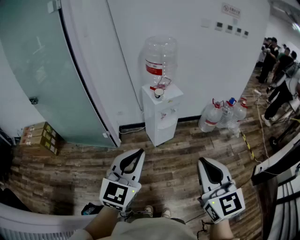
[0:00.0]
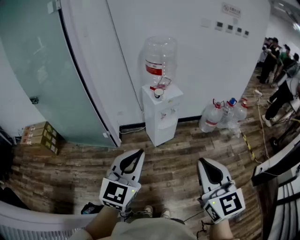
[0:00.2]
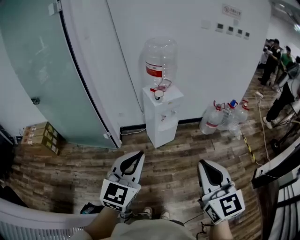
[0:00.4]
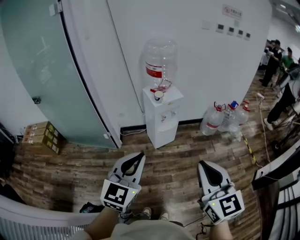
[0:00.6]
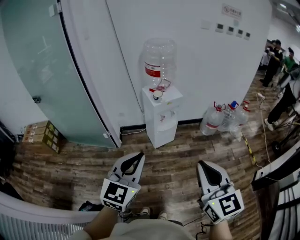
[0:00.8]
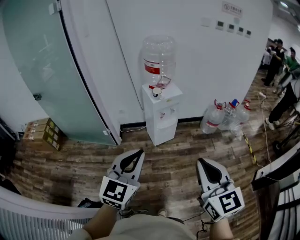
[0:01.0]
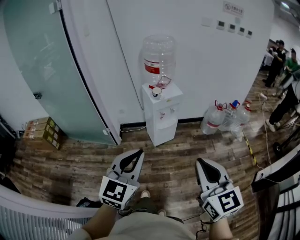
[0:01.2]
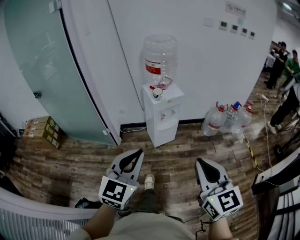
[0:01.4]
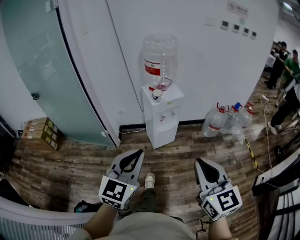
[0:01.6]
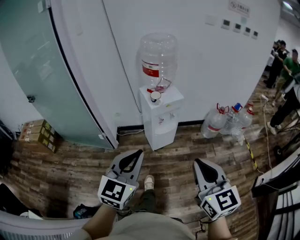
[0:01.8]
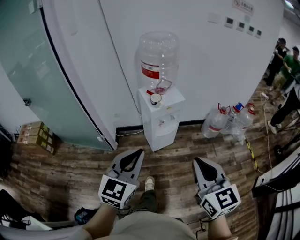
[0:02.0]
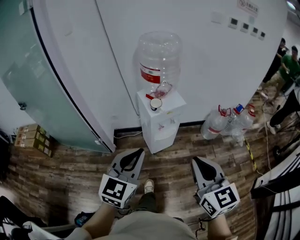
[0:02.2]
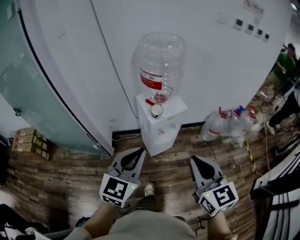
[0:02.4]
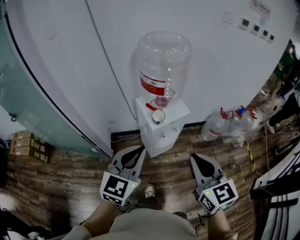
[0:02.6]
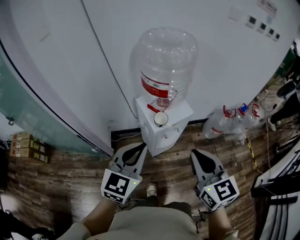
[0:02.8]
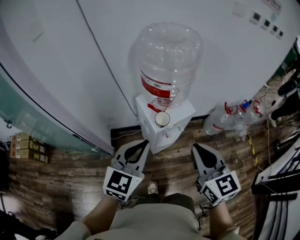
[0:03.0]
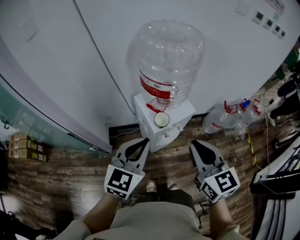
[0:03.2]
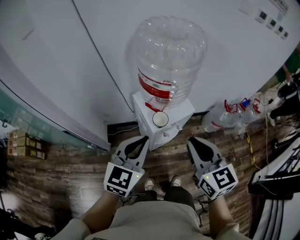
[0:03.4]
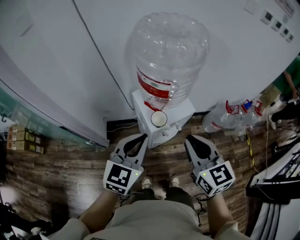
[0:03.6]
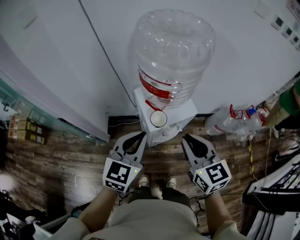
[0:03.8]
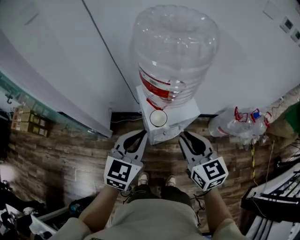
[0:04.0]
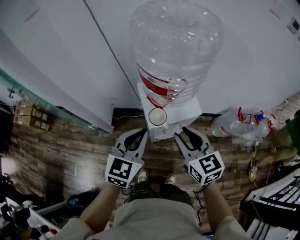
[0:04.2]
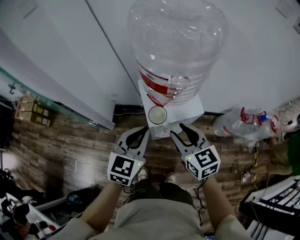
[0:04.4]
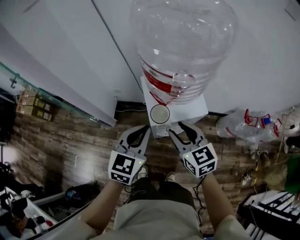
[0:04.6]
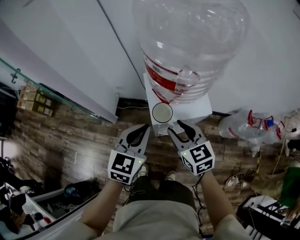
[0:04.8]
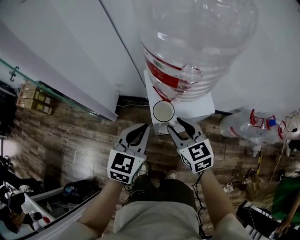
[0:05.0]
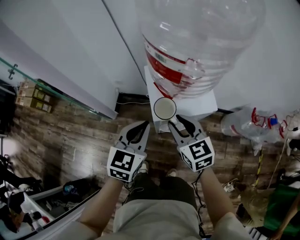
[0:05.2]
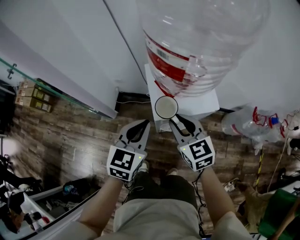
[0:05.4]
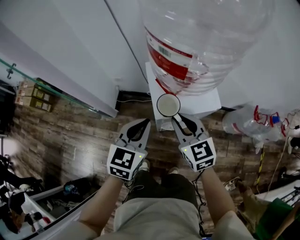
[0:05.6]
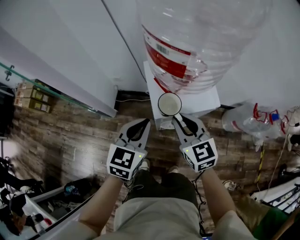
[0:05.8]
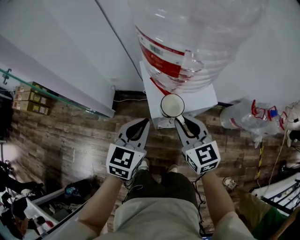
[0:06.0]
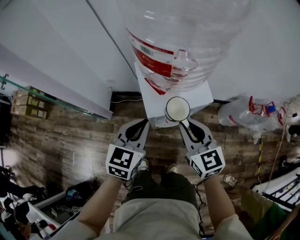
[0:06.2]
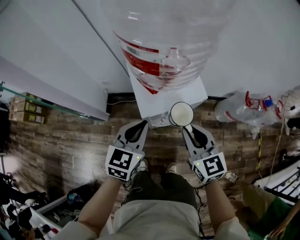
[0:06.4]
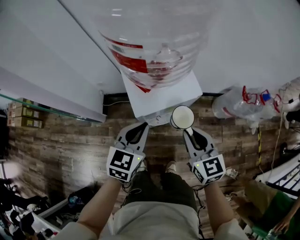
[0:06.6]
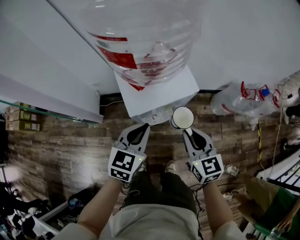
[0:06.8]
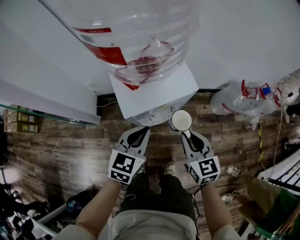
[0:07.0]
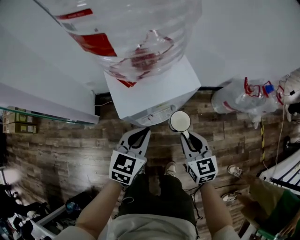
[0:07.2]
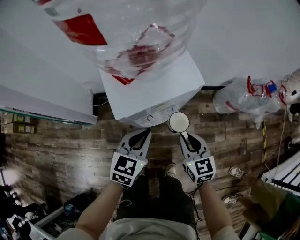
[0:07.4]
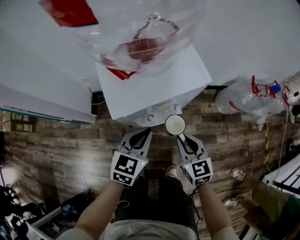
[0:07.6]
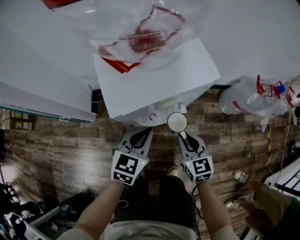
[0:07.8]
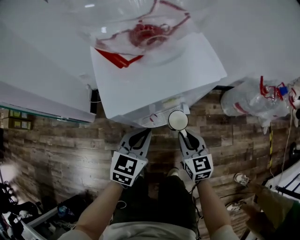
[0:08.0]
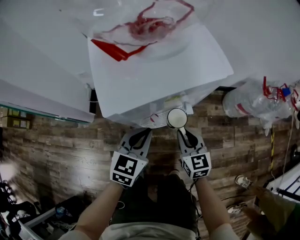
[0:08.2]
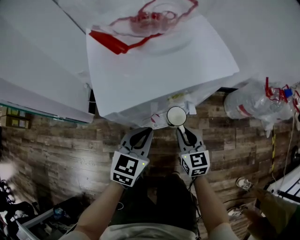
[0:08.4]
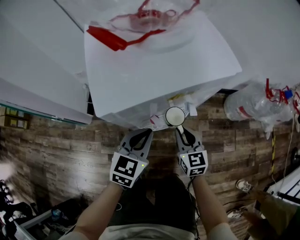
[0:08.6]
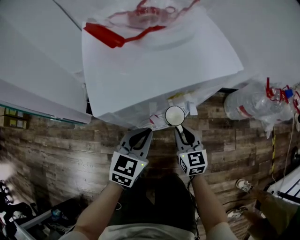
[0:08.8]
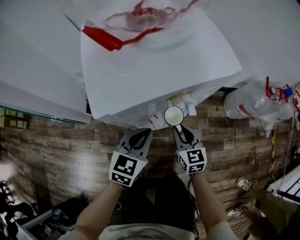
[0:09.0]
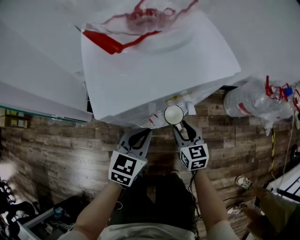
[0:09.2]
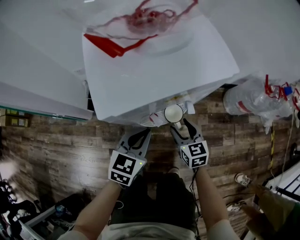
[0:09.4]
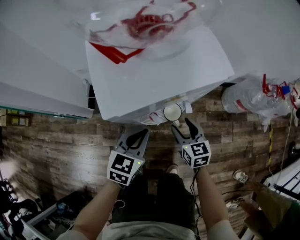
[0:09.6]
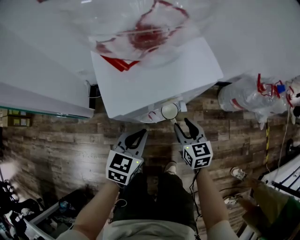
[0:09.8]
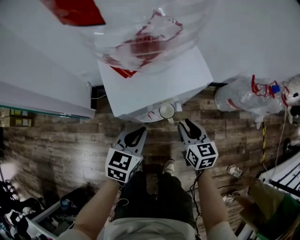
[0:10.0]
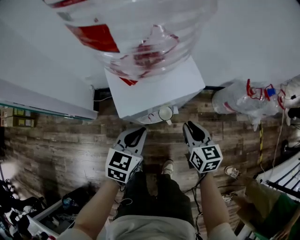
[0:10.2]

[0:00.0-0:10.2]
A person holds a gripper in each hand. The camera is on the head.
0:00.0 to 0:01.4: Both grippers travel together to the right, some 5 cm.
0:01.4 to 0:03.0: Both grippers are carried forward, some 40 cm.
0:03.0 to 0:04.4: The right gripper goes some 20 cm downward and forward, changes its angle by roughly 20 degrees, and opens. The left gripper goes approximately 15 cm downward, forward and to the right.
0:04.4 to 0:05.8: Both grippers travel together downward, some 10 cm. The right gripper closes its fingers.
0:05.8 to 0:07.2: The left gripper goes approximately 15 cm downward and to the right. The right gripper shifts some 20 cm downward, to the right and backward, and changes its angle by about 20 degrees.
0:07.2 to 0:08.8: The two grippers go about 20 cm downward.
0:08.8 to 0:10.2: The grippers both shift upward by about 20 cm. The right gripper opens, then closes again.

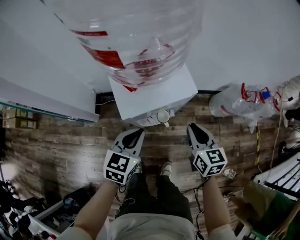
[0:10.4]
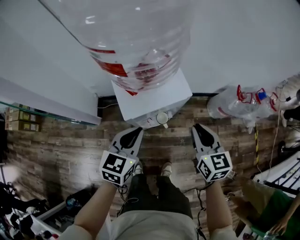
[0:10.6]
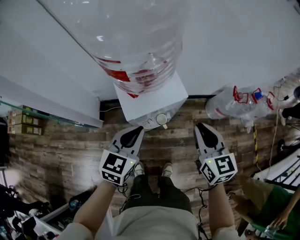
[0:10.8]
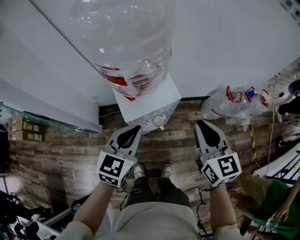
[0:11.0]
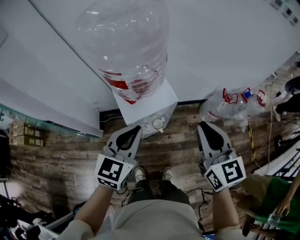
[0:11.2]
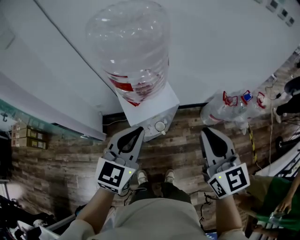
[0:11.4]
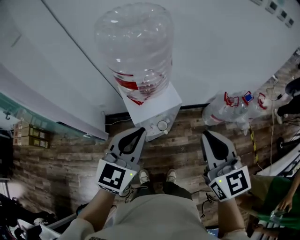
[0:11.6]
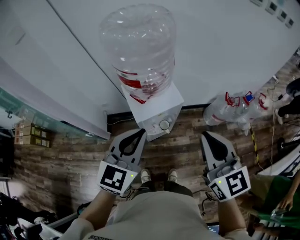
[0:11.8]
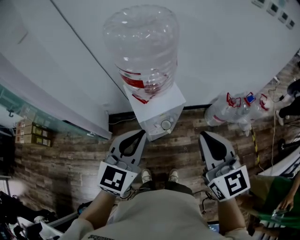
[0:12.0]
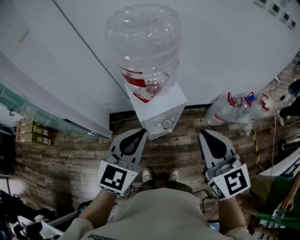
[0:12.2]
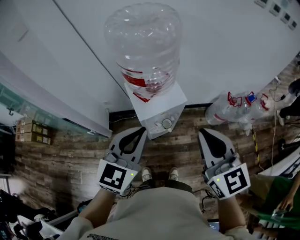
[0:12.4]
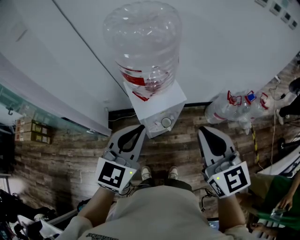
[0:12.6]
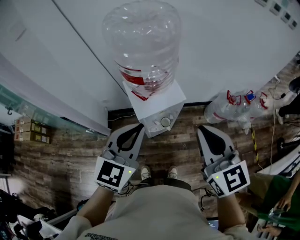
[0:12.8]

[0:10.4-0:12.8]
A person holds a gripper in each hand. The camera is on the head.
0:10.4 to 0:11.6: Both grippers move upward, approximately 35 cm. The right gripper turns by roughly 20 degrees. The left gripper turns by some 20 degrees.
0:11.6 to 0:12.8: There are only small adjustments of the grippers.

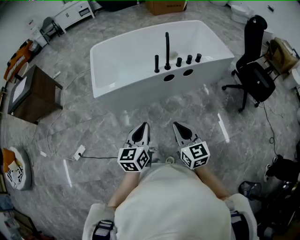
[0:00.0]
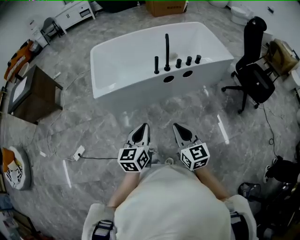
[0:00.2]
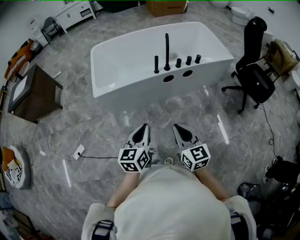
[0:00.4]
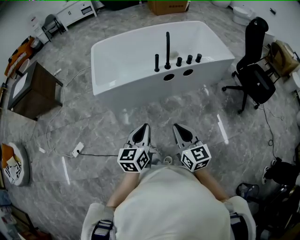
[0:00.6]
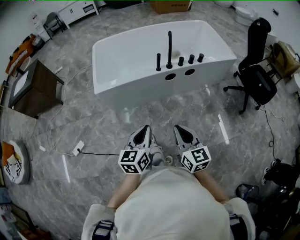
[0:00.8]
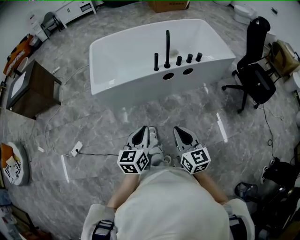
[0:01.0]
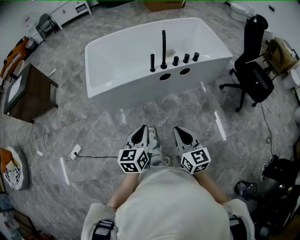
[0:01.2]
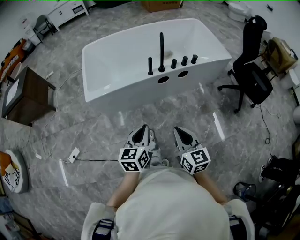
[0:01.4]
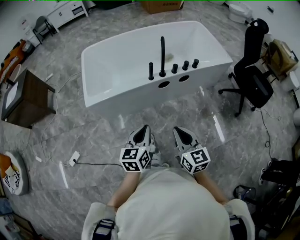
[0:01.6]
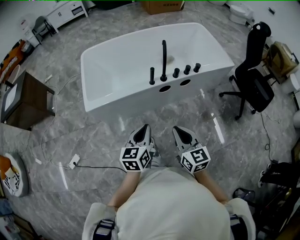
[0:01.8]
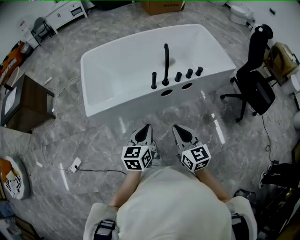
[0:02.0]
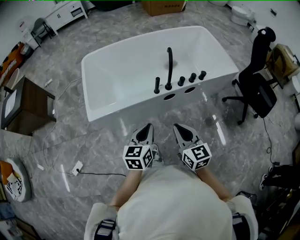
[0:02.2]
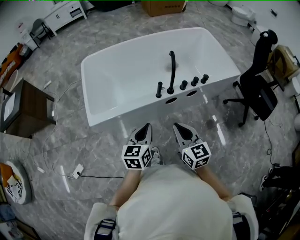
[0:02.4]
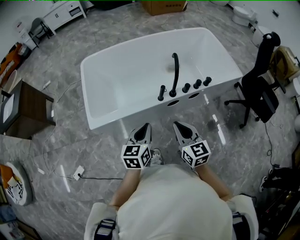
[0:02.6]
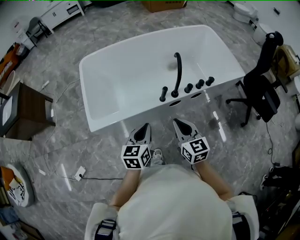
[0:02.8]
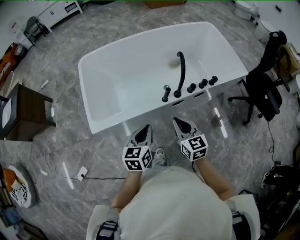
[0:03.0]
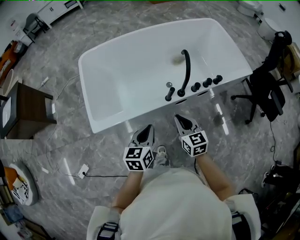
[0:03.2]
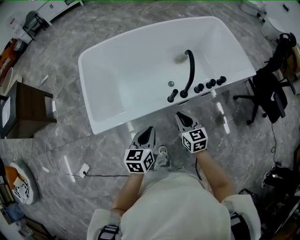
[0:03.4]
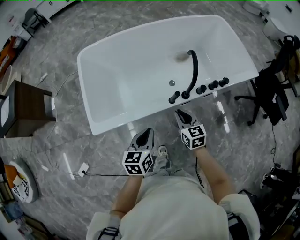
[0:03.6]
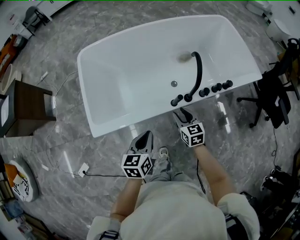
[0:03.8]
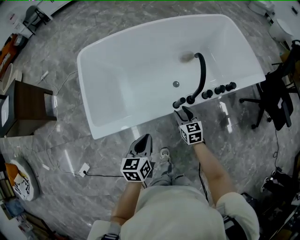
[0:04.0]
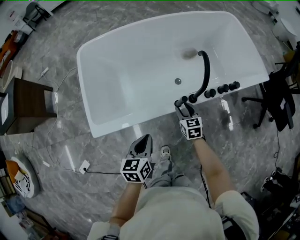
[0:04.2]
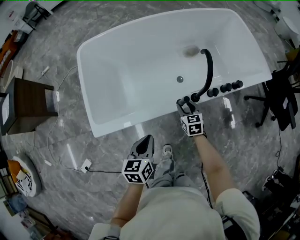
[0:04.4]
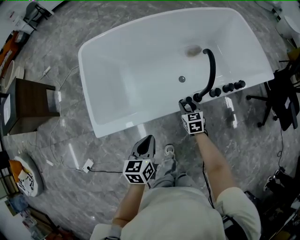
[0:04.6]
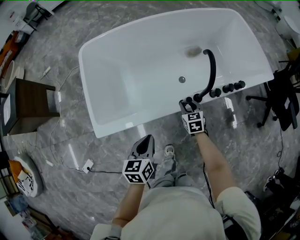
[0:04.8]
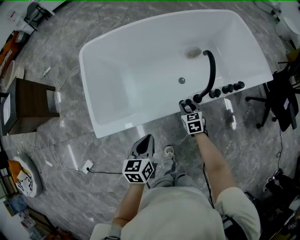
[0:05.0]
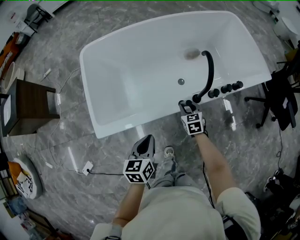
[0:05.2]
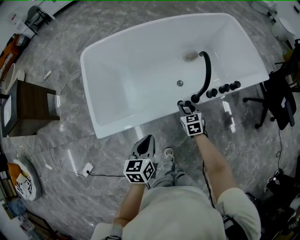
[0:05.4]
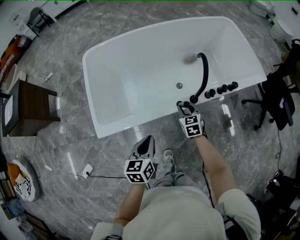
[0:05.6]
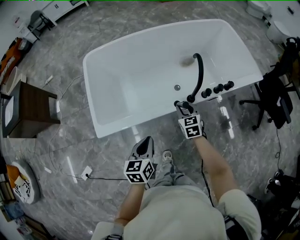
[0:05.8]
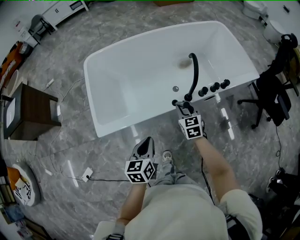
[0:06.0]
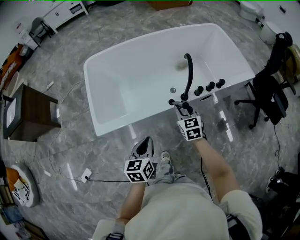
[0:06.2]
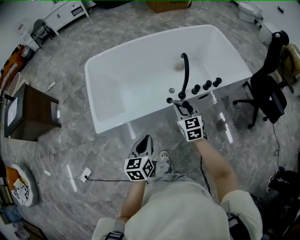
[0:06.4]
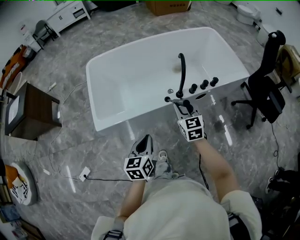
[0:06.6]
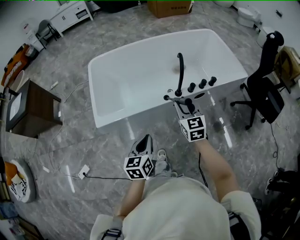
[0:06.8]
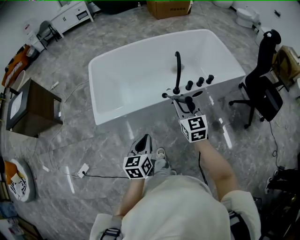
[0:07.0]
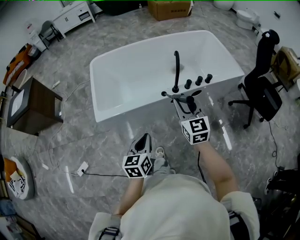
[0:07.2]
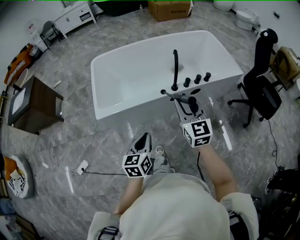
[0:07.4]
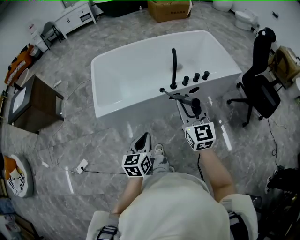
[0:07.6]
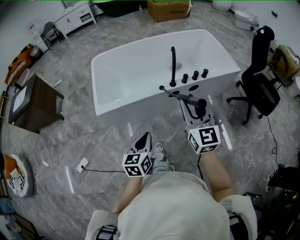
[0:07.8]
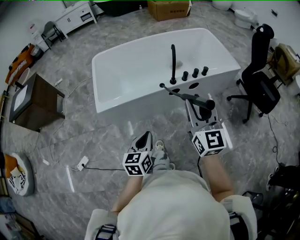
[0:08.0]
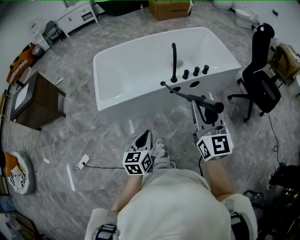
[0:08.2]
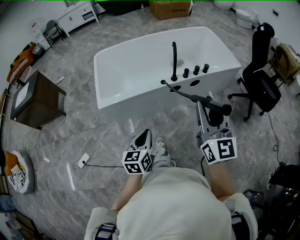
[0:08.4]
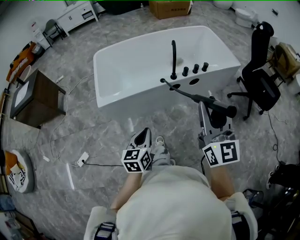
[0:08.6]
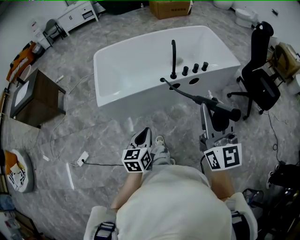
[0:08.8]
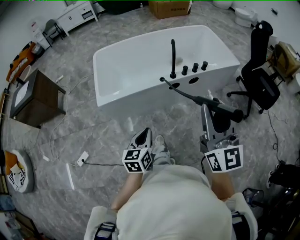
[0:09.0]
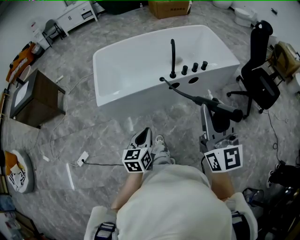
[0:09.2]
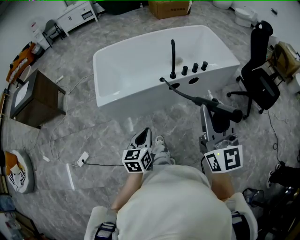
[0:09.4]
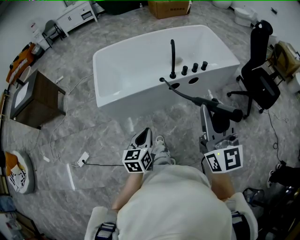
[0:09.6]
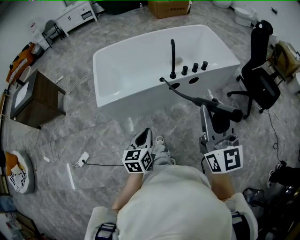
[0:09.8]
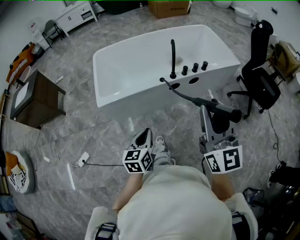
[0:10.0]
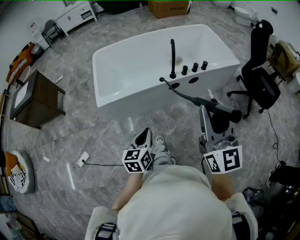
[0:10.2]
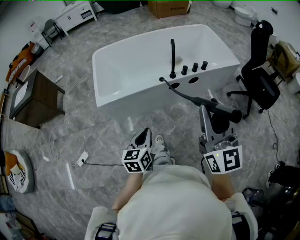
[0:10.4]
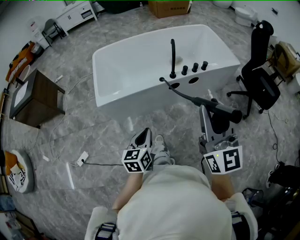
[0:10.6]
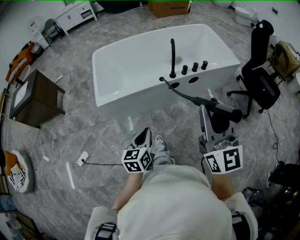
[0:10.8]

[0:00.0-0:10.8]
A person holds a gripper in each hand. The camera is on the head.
0:00.0 to 0:01.6: The grippers both shift forward by about 10 cm.
0:01.6 to 0:03.0: The grippers both shift forward by some 25 cm.
0:03.0 to 0:04.6: The right gripper goes approximately 30 cm downward and forward, turns by about 20 degrees, and opens up, while the left gripper moves downward, forward and to the left, roughly 10 cm.
0:04.6 to 0:06.2: The right gripper is displaced upward and backward by approximately 20 cm; the left gripper heads backward and upward, covering some 10 cm.
0:06.2 to 0:07.8: The left gripper is displaced backward by roughly 20 cm. Meanwhile the right gripper shifts approximately 35 cm backward and upward, and swivels approximately 30 degrees.
0:07.8 to 0:09.2: The left gripper is displaced backward by roughly 5 cm; the right gripper is displaced backward and upward by approximately 15 cm.
0:09.2 to 0:10.8: Both grippers stay put.
